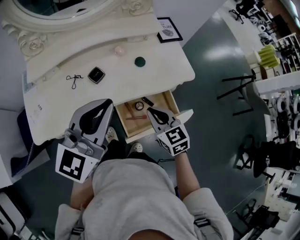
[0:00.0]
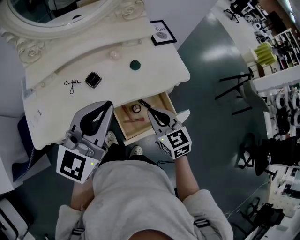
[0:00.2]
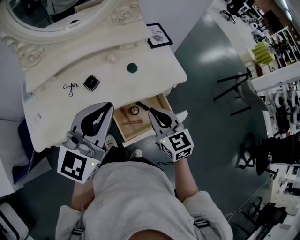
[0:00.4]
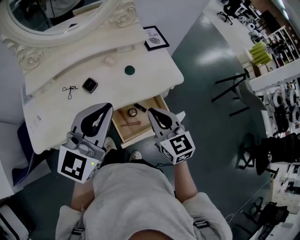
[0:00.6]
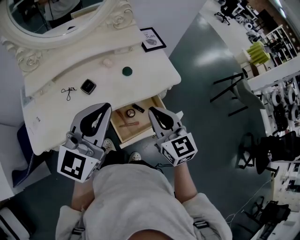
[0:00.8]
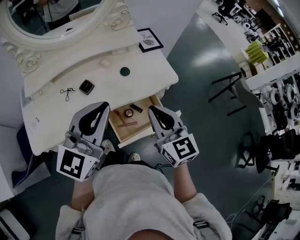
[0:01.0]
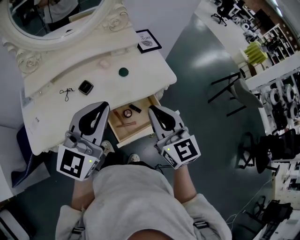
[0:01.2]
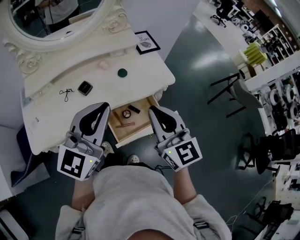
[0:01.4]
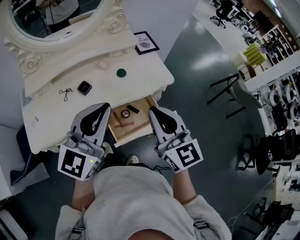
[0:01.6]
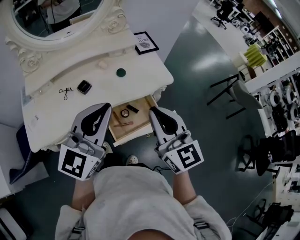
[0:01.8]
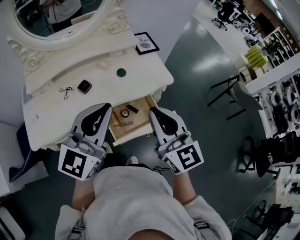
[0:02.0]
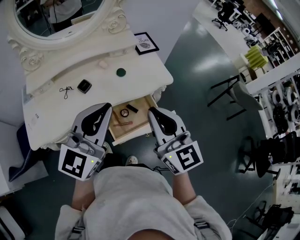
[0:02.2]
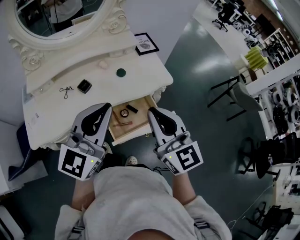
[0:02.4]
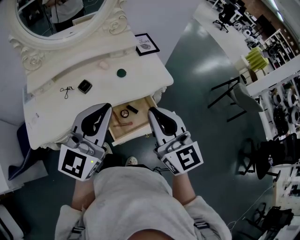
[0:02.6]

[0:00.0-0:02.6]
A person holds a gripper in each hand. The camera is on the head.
0.0 to 1.2 s: The left gripper ends up about 5 cm from where it was; the right gripper is displaced upward by about 15 cm, and swivels roughly 30 degrees.
1.2 to 2.6 s: The right gripper shifts by some 5 cm.

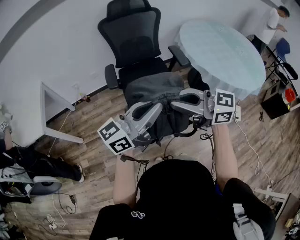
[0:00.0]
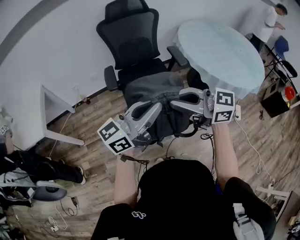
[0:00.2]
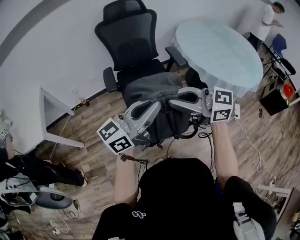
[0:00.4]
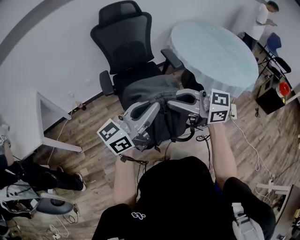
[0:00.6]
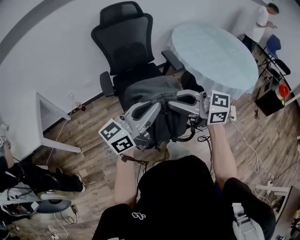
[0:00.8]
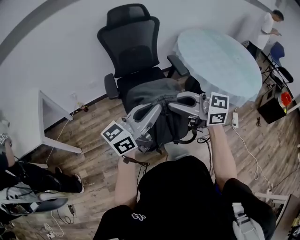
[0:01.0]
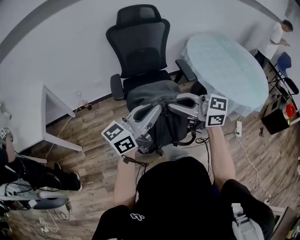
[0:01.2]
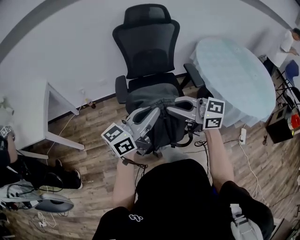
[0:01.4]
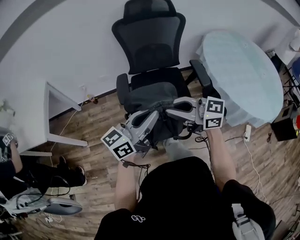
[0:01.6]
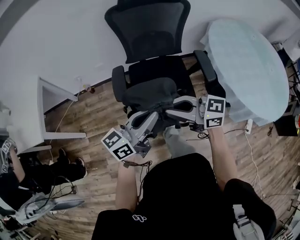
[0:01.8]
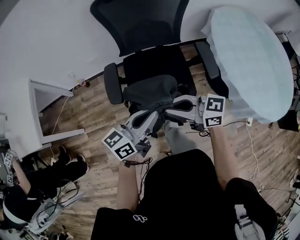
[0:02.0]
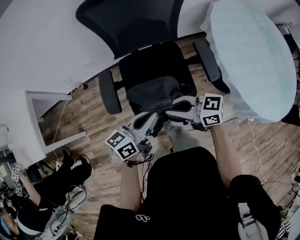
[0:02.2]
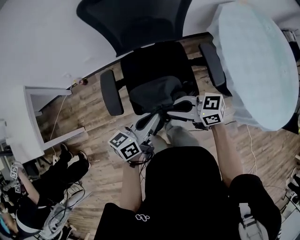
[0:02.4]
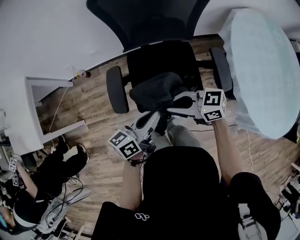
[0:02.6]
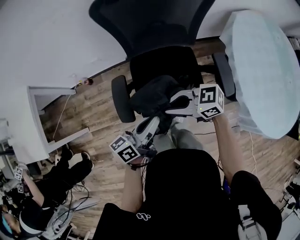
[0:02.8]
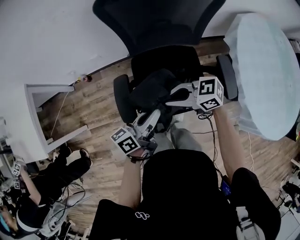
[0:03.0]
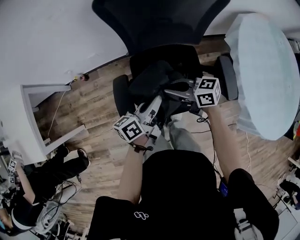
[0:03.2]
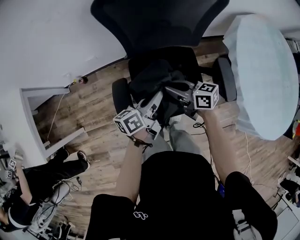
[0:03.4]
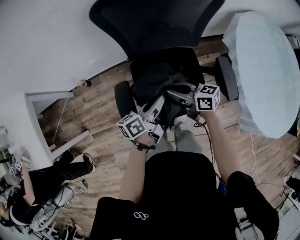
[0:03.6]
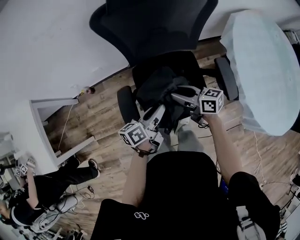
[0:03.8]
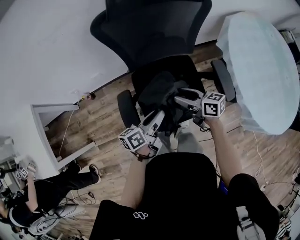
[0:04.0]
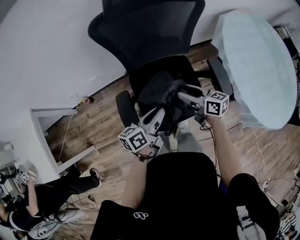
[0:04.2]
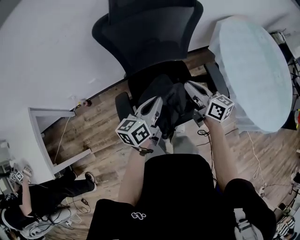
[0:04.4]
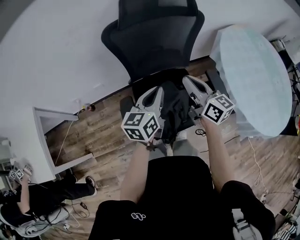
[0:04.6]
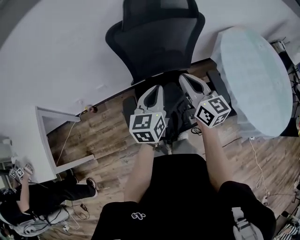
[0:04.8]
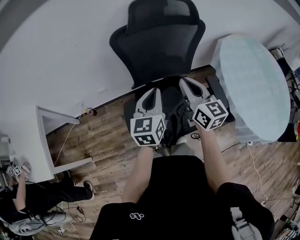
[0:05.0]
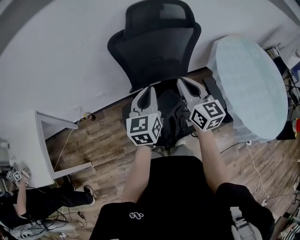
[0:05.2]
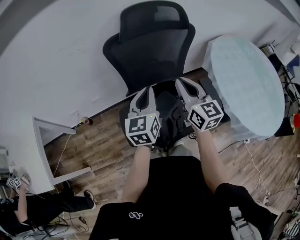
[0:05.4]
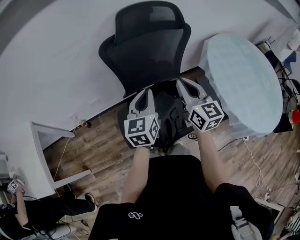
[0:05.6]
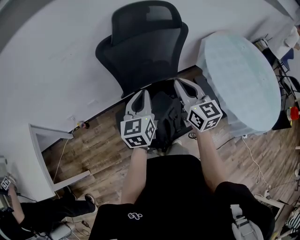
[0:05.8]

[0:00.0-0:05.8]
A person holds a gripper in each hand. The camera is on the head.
0.0 to 1.4 s: The left gripper changes place by some 15 cm. The right gripper ends up roughly 15 cm from where it was.
1.4 to 2.8 s: The left gripper moves roughly 35 cm, and turns by roughly 40 degrees, while the right gripper ends up approximately 35 cm from where it was, and turns by approximately 40 degrees.
2.8 to 4.4 s: The left gripper moves roughly 5 cm downward and comes back, and opens, then closes again. Meanwhile the right gripper reaches some 5 cm downward, then returns, turns by roughly 70 degrees, and opens and closes again.
4.4 to 5.8 s: Both grippers move upward, roughly 10 cm. The left gripper changes its angle by about 30 degrees. Meanwhile the right gripper rotates about 30 degrees.

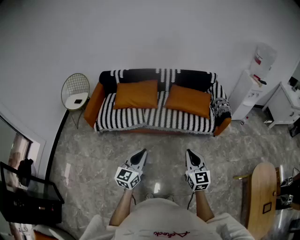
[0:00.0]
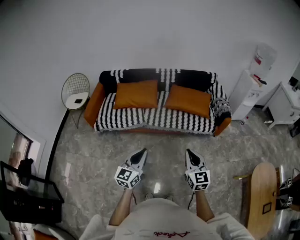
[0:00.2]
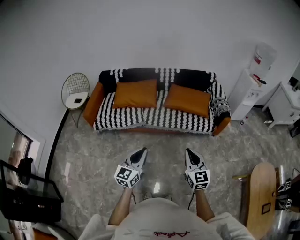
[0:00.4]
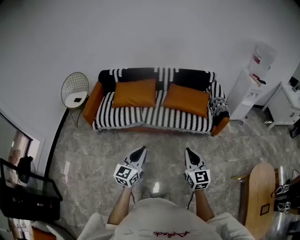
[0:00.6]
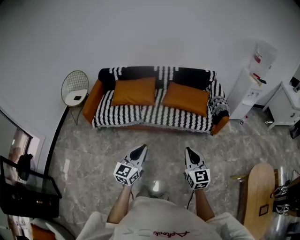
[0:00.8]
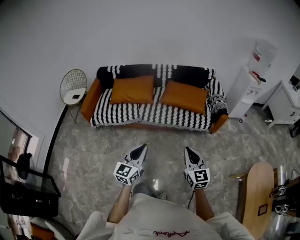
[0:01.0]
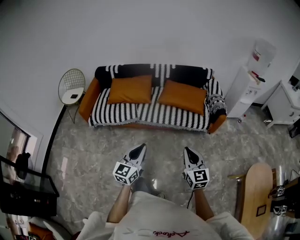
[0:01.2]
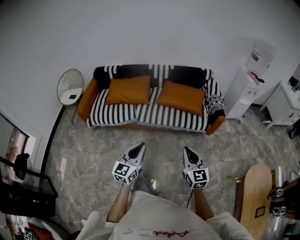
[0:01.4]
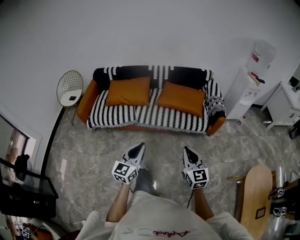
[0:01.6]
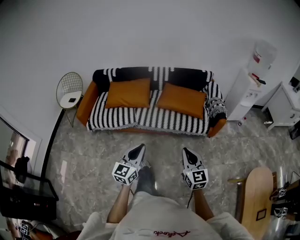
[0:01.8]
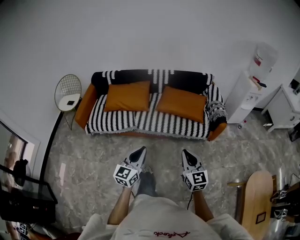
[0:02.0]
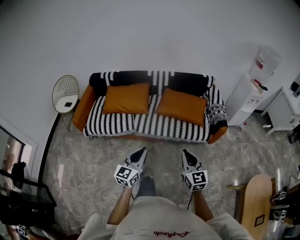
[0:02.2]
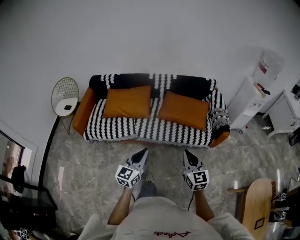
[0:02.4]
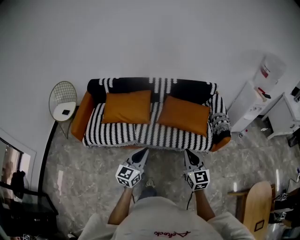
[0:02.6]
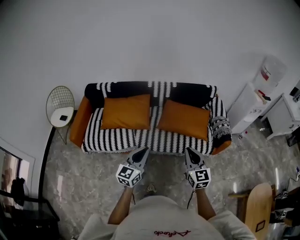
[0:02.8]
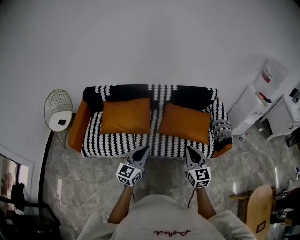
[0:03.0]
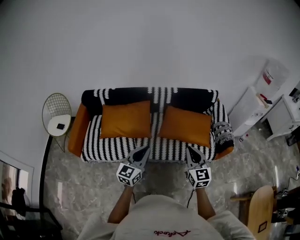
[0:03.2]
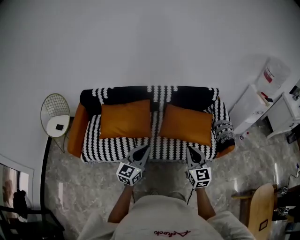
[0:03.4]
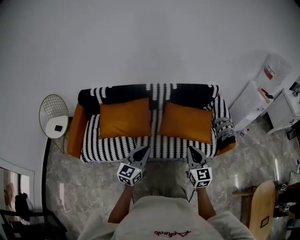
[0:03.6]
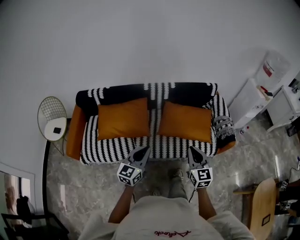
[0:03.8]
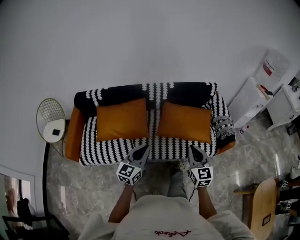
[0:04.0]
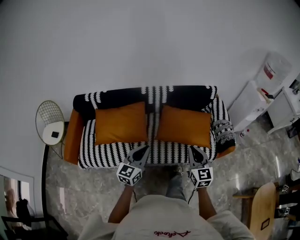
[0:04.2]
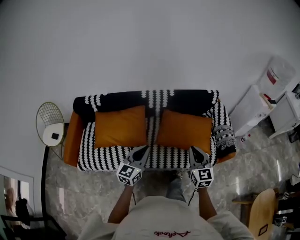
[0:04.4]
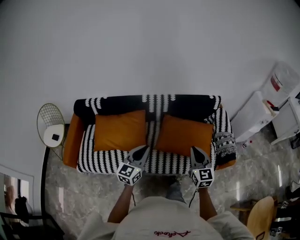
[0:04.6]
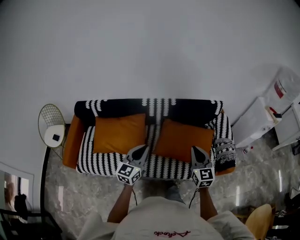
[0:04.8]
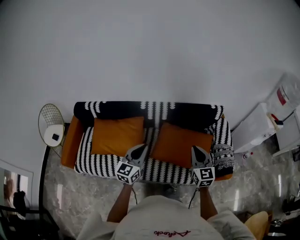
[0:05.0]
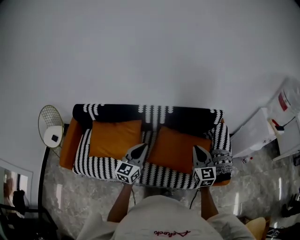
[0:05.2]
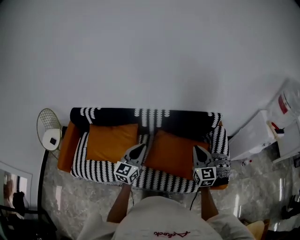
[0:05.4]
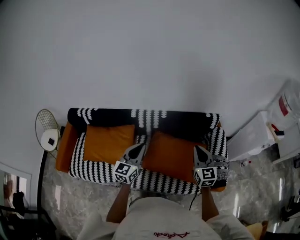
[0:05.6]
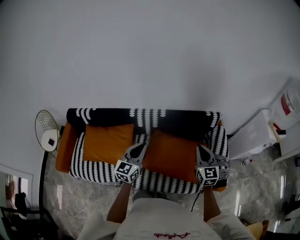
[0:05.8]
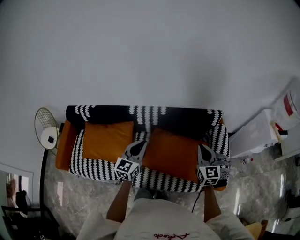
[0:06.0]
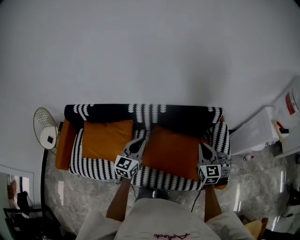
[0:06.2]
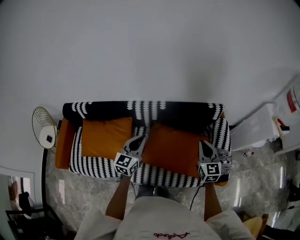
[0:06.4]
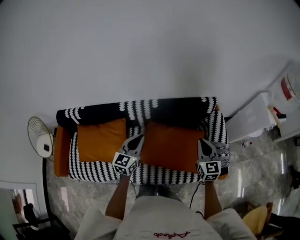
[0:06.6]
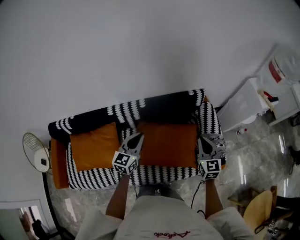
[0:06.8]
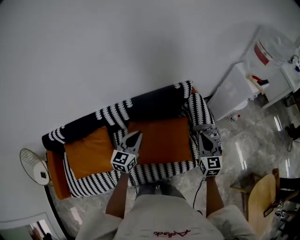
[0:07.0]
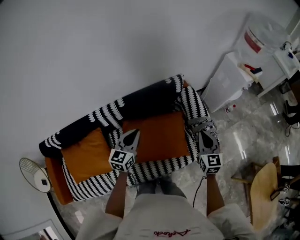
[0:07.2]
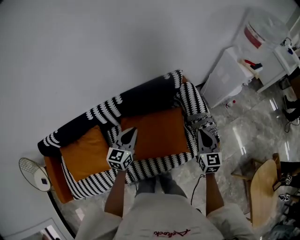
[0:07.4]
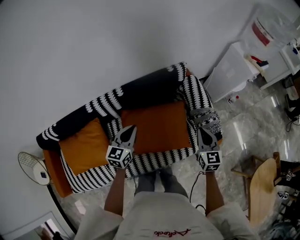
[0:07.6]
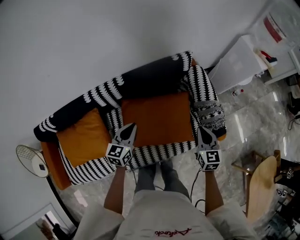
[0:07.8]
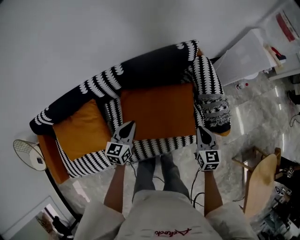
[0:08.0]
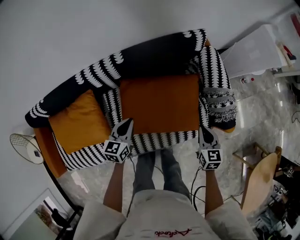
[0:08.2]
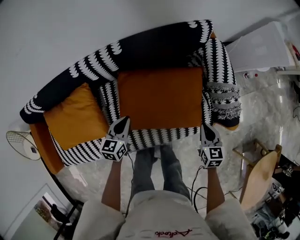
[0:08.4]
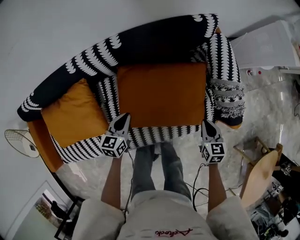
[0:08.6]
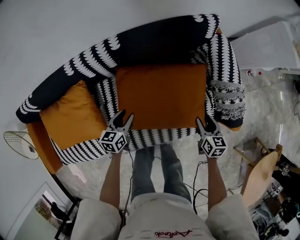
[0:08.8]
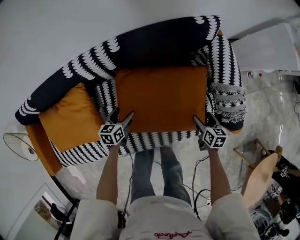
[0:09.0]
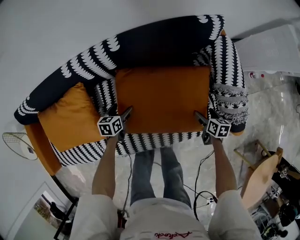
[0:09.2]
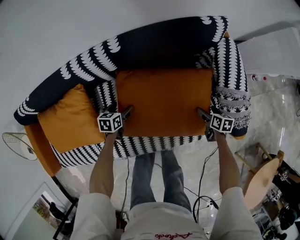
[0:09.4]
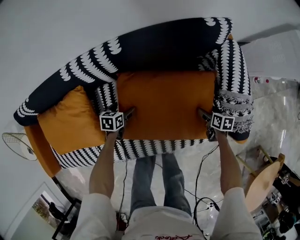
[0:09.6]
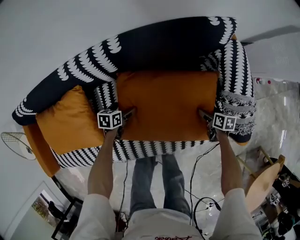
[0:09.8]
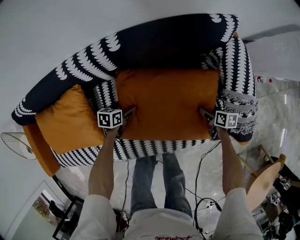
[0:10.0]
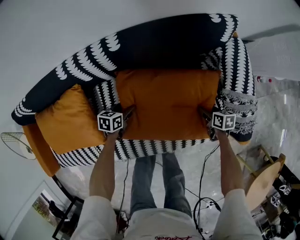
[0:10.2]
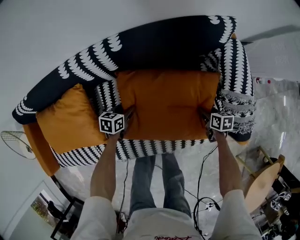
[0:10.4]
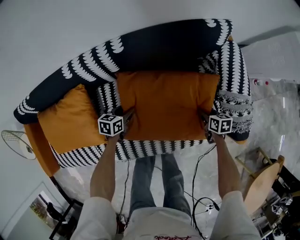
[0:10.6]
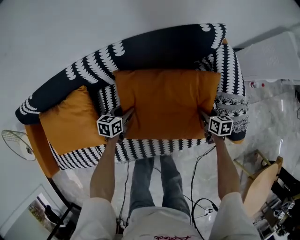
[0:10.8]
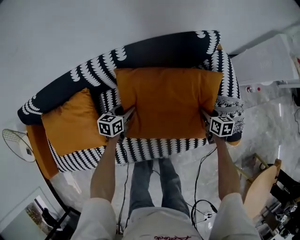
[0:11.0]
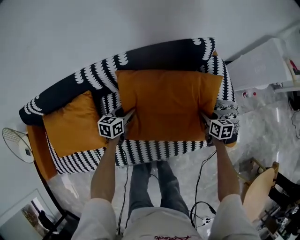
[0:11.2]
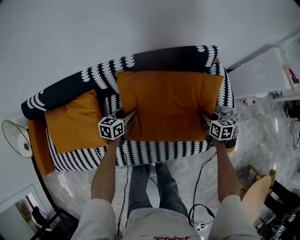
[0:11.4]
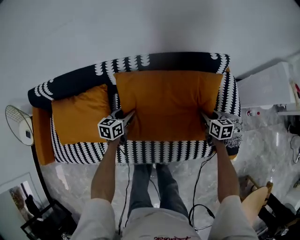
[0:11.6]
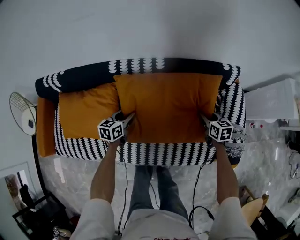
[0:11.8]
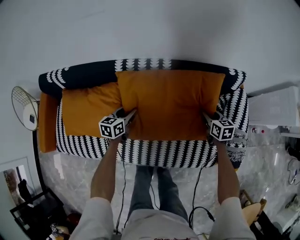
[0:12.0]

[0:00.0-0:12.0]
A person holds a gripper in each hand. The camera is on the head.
0.0 to 1.6 s: The two grippers go roughly 10 cm to the right.
1.6 to 3.0 s: Both grippers travel together forward, approximately 30 cm.
3.0 to 4.4 s: Both grippers travel together forward, approximately 15 cm.
4.4 to 6.0 s: Both grippers travel together forward and to the right, roughly 35 cm.
6.0 to 7.6 s: The left gripper is displaced downward, to the right and forward by about 15 cm, and turns by about 20 degrees; the right gripper goes some 15 cm to the right and downward, and rotates about 30 degrees.
7.6 to 9.0 s: Both grippers travel together downward, some 35 cm. The right gripper turns by some 40 degrees, and opens. Meanwhile the left gripper swivels about 30 degrees, and opens its fingers.
9.0 to 10.4 s: The left gripper travels downward by approximately 10 cm, and closes up. The right gripper shifts some 10 cm downward and forward.
10.4 to 12.0 s: The left gripper goes some 20 cm upward and to the left, and changes its angle by approximately 30 degrees. Meanwhile the right gripper shifts roughly 25 cm upward, to the left and forward, and swivels some 30 degrees.

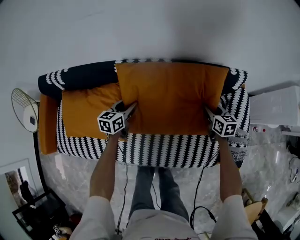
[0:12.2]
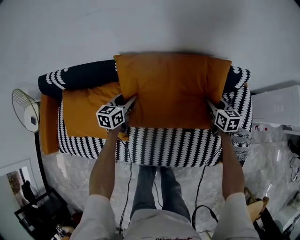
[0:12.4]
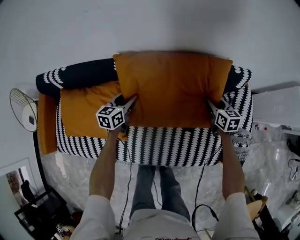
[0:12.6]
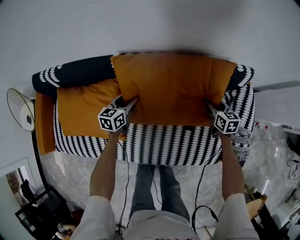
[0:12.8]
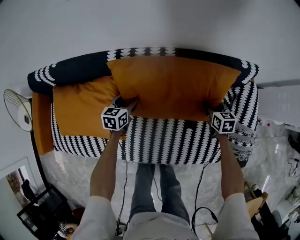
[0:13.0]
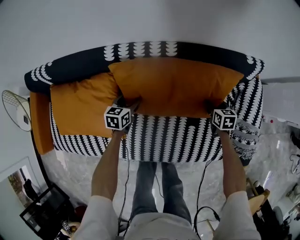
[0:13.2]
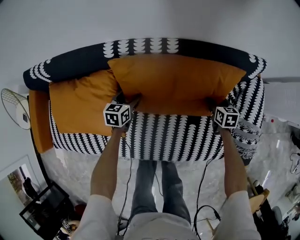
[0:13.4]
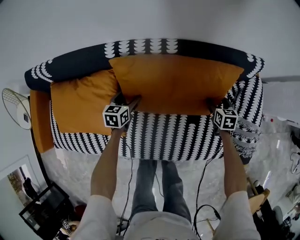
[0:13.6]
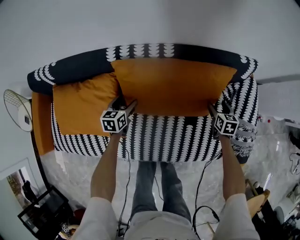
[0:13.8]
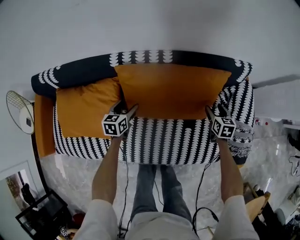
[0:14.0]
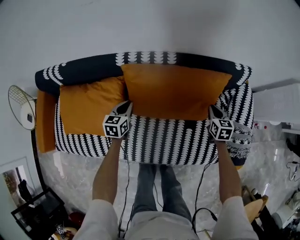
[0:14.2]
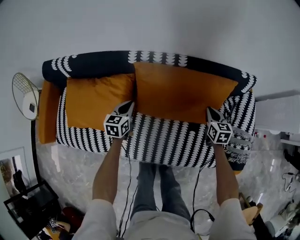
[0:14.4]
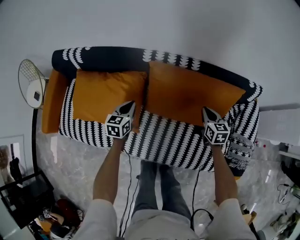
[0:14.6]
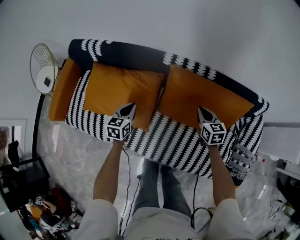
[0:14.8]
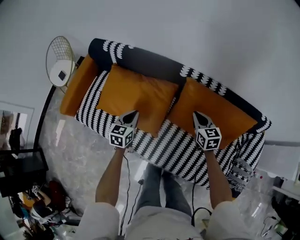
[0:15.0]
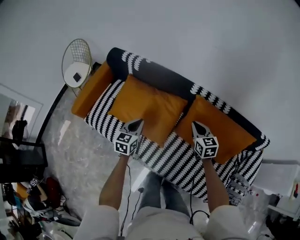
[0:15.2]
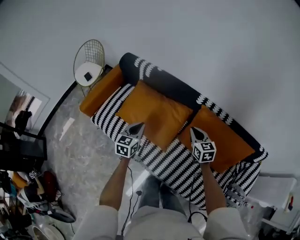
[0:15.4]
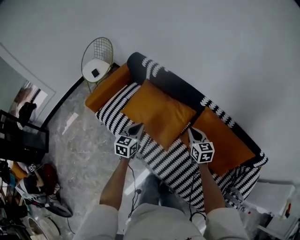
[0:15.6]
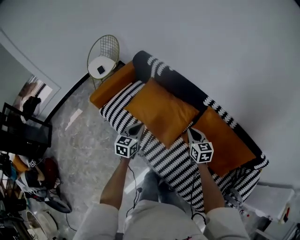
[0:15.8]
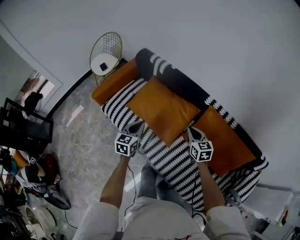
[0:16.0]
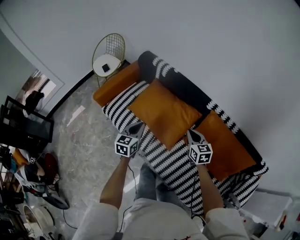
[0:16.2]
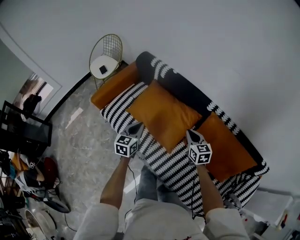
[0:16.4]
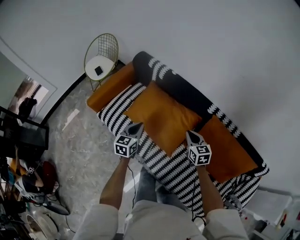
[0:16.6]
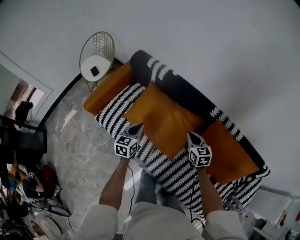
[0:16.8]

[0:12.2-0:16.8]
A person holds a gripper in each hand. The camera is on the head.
12.2 to 13.8 s: The two grippers go some 10 cm downward. The left gripper opens its fingers.
13.8 to 15.2 s: The left gripper ends up some 35 cm from where it was, rotates approximately 30 degrees, and closes up. The right gripper ends up about 50 cm from where it was, turns by approximately 50 degrees, and closes up.
15.2 to 16.8 s: The grippers both shift to the left and forward by approximately 15 cm.
